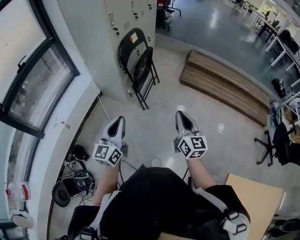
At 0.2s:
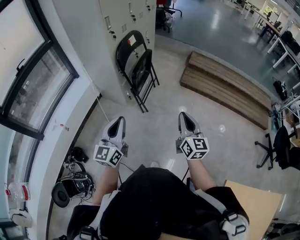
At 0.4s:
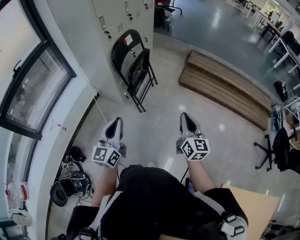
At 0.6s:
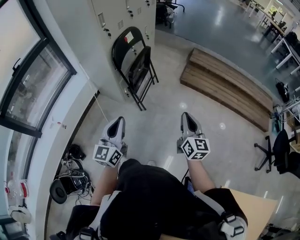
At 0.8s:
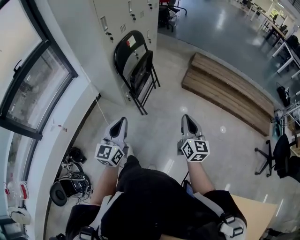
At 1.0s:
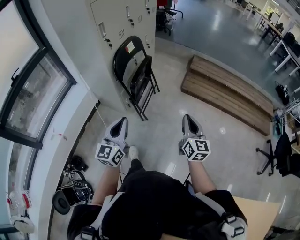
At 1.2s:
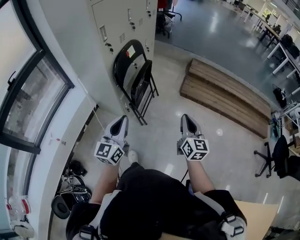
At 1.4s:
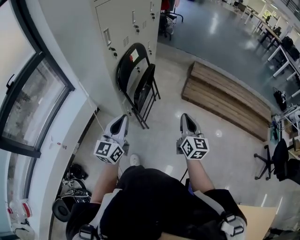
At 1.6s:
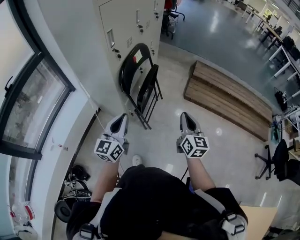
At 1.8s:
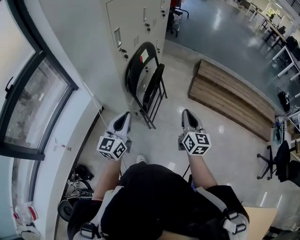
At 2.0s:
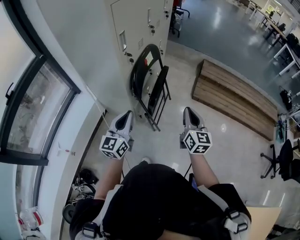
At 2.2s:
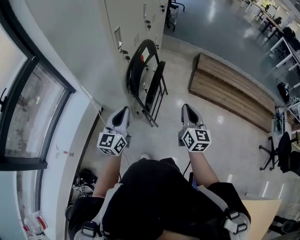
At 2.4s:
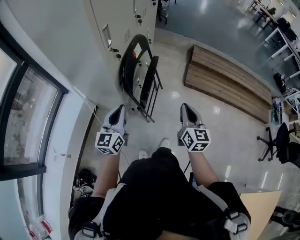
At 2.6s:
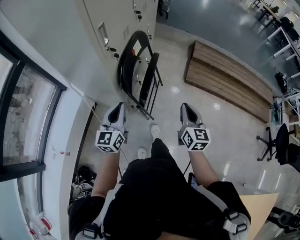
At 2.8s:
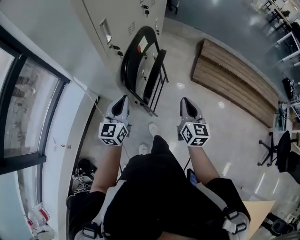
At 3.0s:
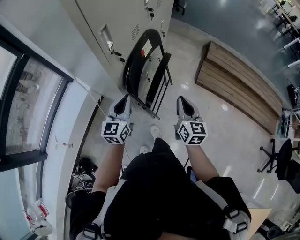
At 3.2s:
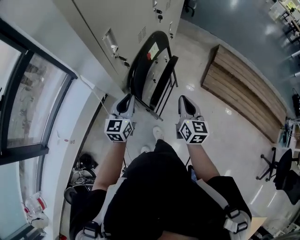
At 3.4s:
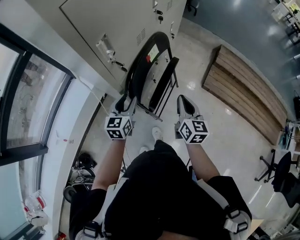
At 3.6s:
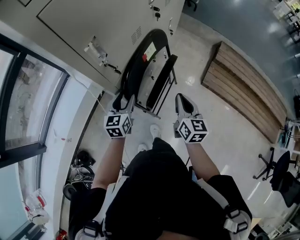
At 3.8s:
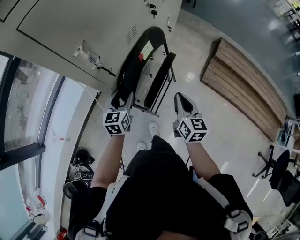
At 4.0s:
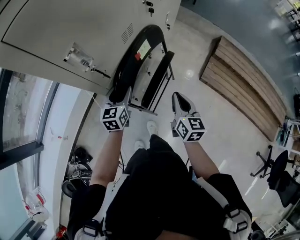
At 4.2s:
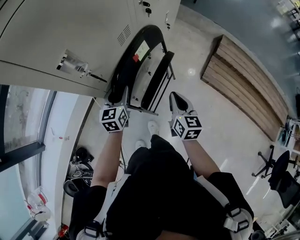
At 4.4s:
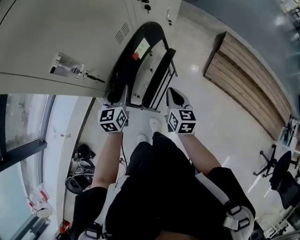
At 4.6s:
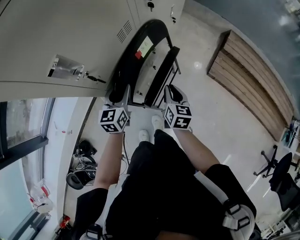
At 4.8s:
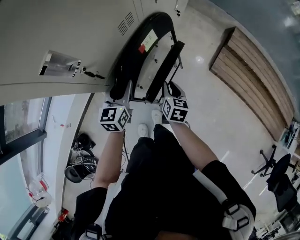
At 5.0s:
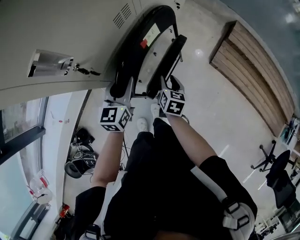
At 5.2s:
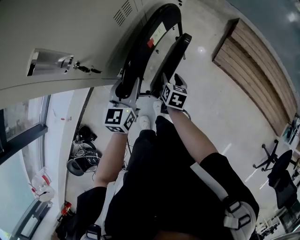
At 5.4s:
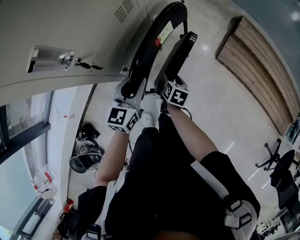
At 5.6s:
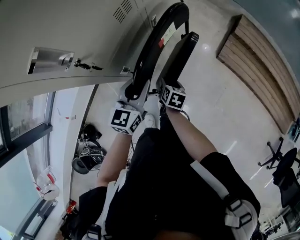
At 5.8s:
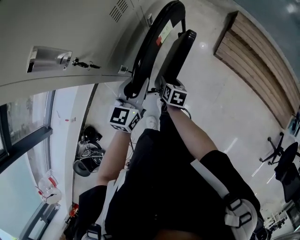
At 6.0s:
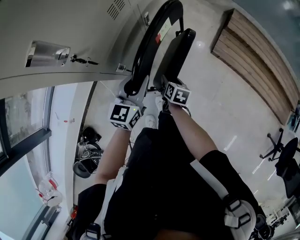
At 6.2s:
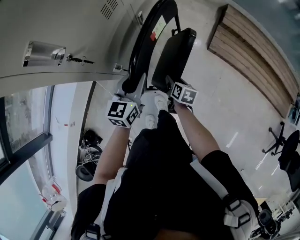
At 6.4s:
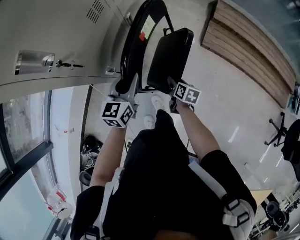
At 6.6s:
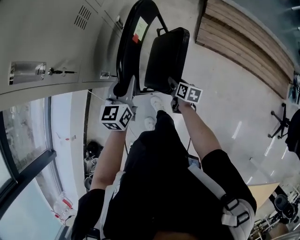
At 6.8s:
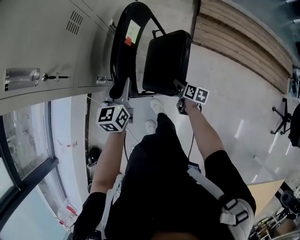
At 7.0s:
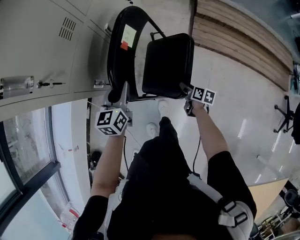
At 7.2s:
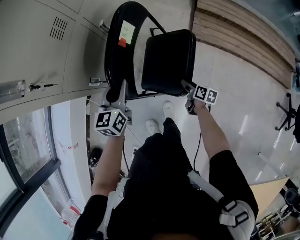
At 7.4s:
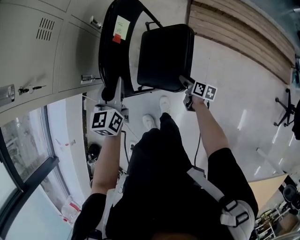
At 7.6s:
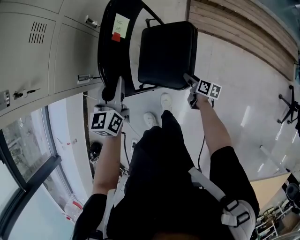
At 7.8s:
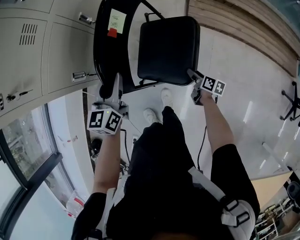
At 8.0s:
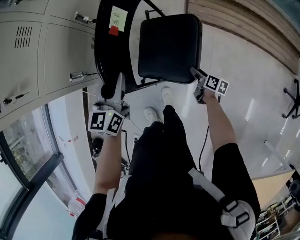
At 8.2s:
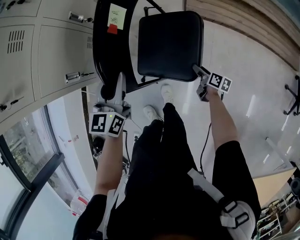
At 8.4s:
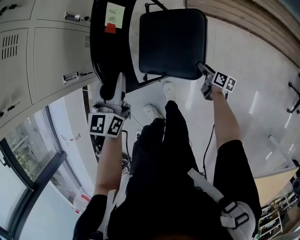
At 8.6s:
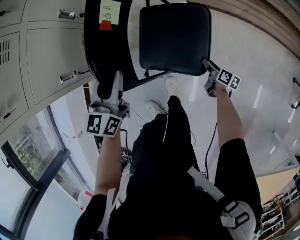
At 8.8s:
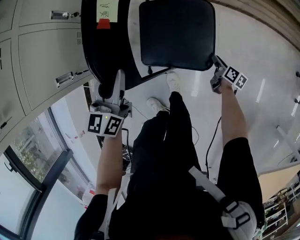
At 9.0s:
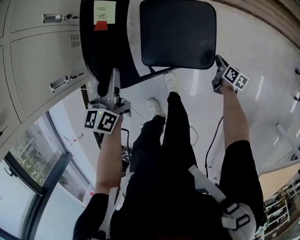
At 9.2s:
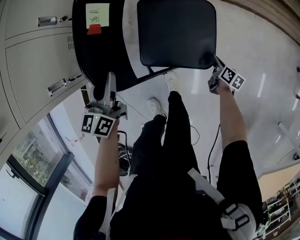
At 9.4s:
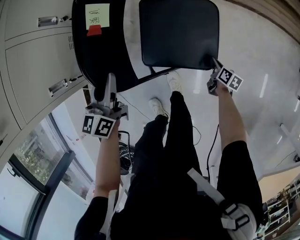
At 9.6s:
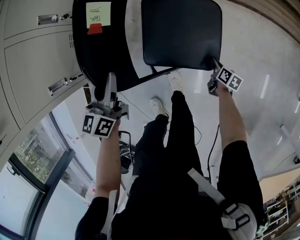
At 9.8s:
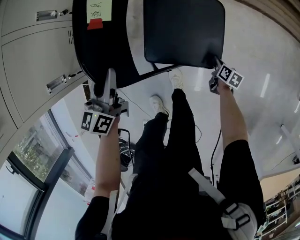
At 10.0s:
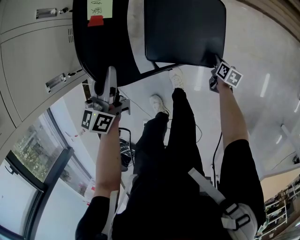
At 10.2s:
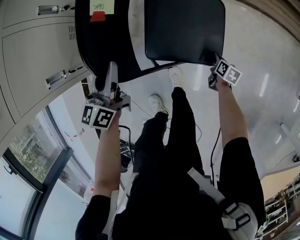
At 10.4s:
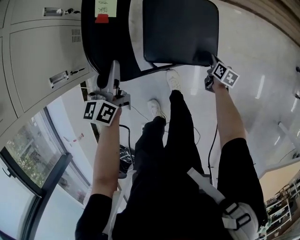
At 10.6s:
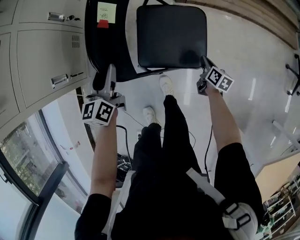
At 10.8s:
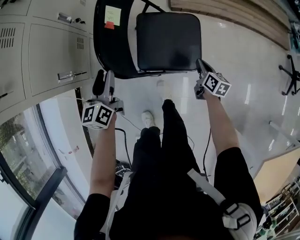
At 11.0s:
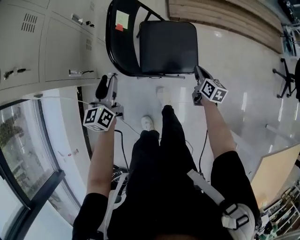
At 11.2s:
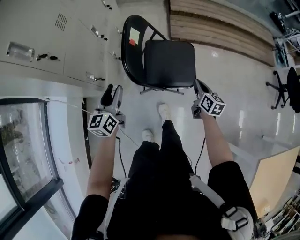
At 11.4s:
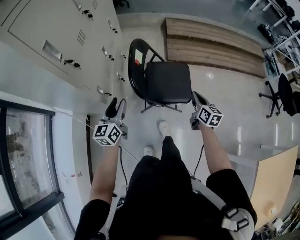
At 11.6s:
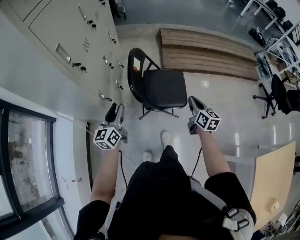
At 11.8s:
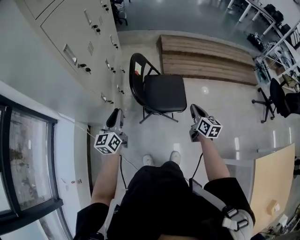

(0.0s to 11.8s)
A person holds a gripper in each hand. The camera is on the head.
0.0s - 1.4s: The two grippers go approximately 25 cm forward.
1.4s - 3.0s: The left gripper goes about 25 cm forward, to the left and downward, while the right gripper moves forward and to the left, some 25 cm.
3.0s - 4.4s: Both grippers move forward and downward, approximately 15 cm. The left gripper opens its fingers.
4.4s - 6.0s: The right gripper travels downward by about 15 cm, rotates roughly 30 degrees, and opens up. Meanwhile the left gripper is displaced to the right by approximately 10 cm.
6.0s - 7.4s: The right gripper is displaced to the right and downward by approximately 25 cm, and turns by about 20 degrees. Meanwhile the left gripper moves approximately 5 cm.
7.4s - 8.8s: The right gripper is displaced to the right and downward by about 20 cm, and closes, while the left gripper shifts approximately 10 cm to the right and downward.
8.8s - 10.4s: The right gripper closes, while the left gripper heads downward, covering about 5 cm.
10.4s - 11.8s: The left gripper goes approximately 30 cm upward and backward, while the right gripper moves upward, roughly 40 cm, and tilts its fingers some 30 degrees upward.

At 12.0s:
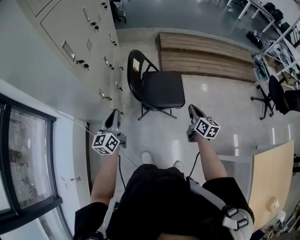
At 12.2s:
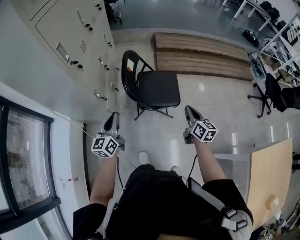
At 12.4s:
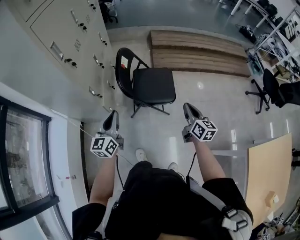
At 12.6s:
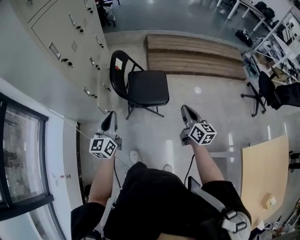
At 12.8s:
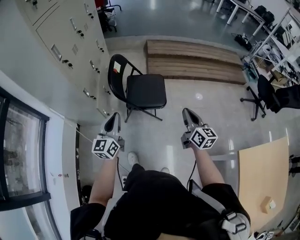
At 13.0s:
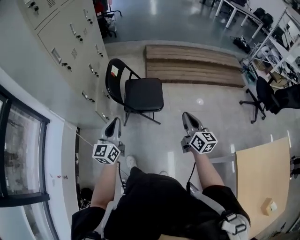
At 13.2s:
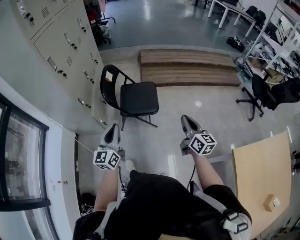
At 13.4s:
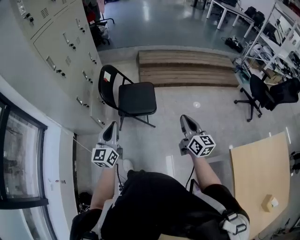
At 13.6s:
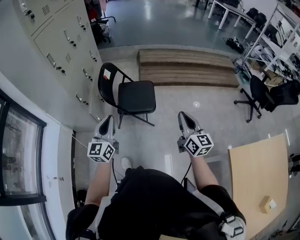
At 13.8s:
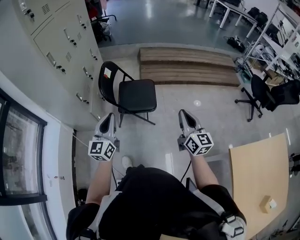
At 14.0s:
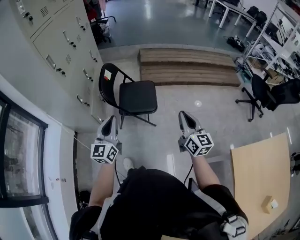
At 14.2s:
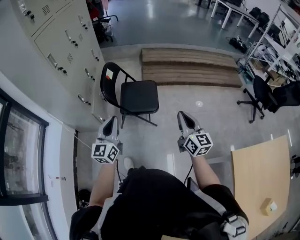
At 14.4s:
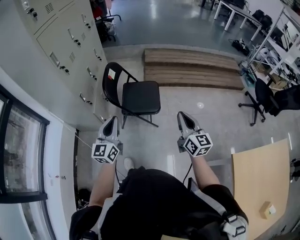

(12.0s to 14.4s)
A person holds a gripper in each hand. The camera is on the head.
12.0s - 13.2s: The left gripper shifts roughly 25 cm to the right and backward, while the right gripper travels backward, to the right and upward by about 25 cm.
13.2s - 14.4s: There are only small adjustments of the grippers.

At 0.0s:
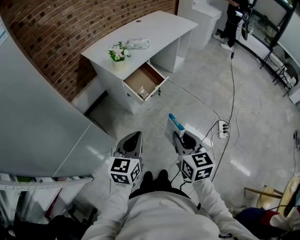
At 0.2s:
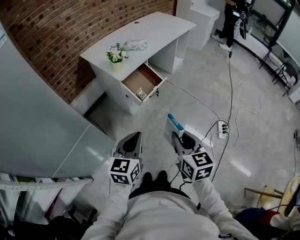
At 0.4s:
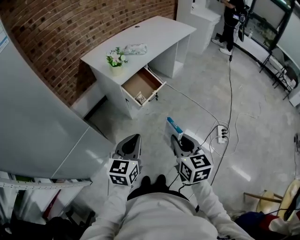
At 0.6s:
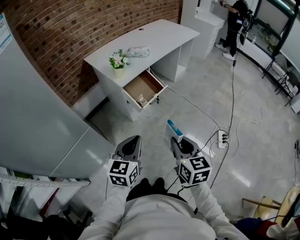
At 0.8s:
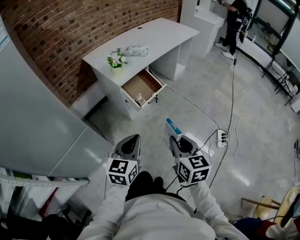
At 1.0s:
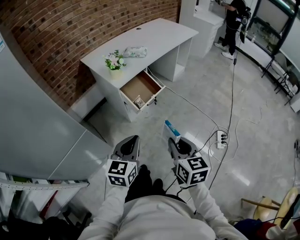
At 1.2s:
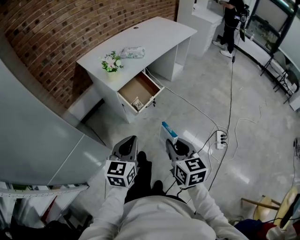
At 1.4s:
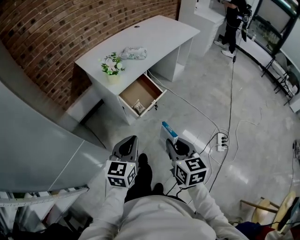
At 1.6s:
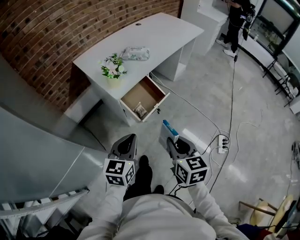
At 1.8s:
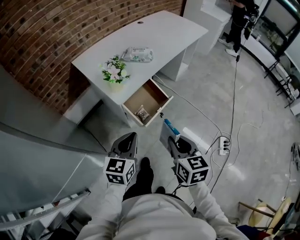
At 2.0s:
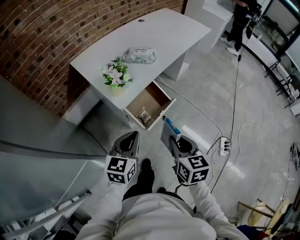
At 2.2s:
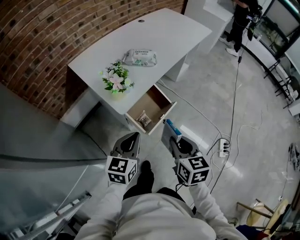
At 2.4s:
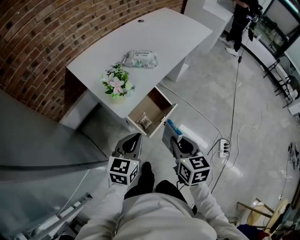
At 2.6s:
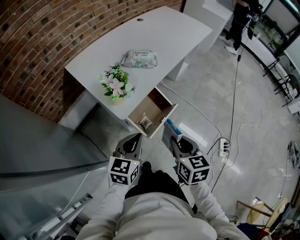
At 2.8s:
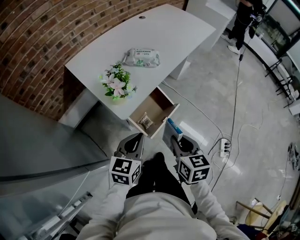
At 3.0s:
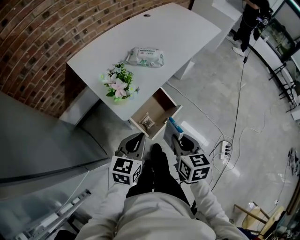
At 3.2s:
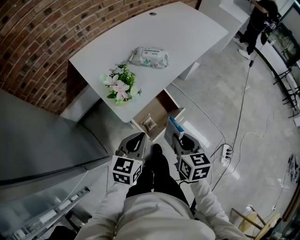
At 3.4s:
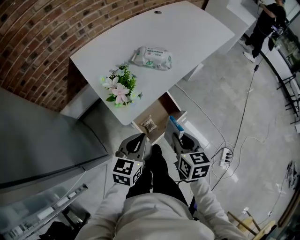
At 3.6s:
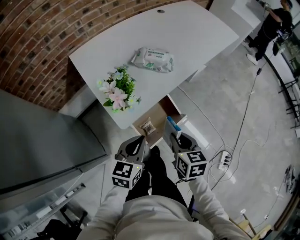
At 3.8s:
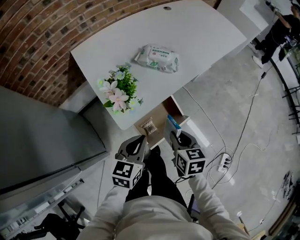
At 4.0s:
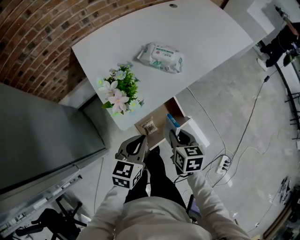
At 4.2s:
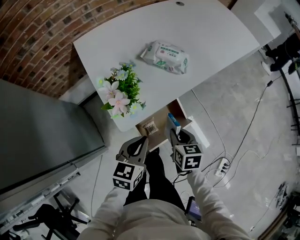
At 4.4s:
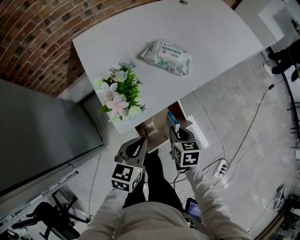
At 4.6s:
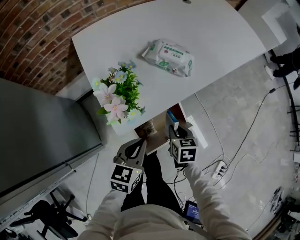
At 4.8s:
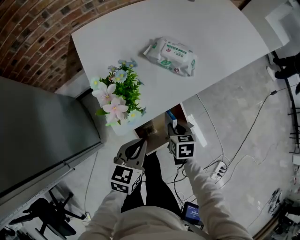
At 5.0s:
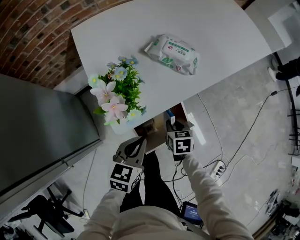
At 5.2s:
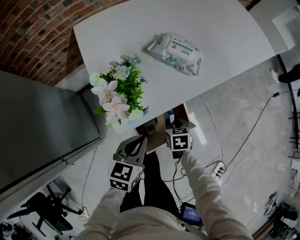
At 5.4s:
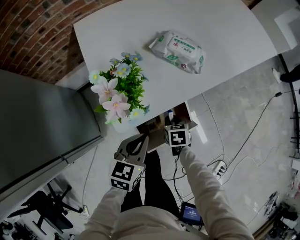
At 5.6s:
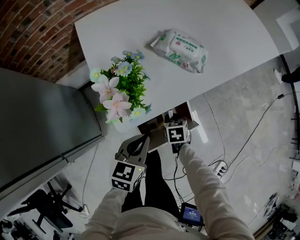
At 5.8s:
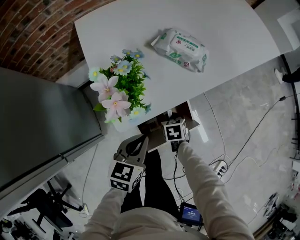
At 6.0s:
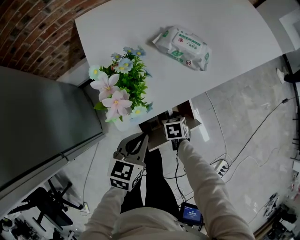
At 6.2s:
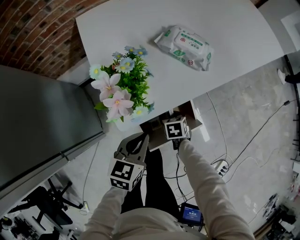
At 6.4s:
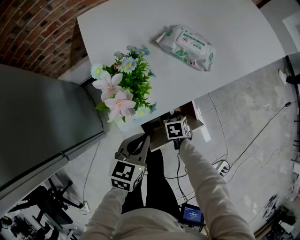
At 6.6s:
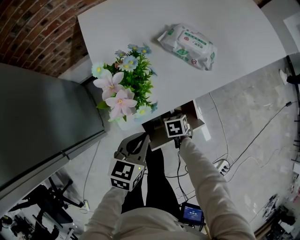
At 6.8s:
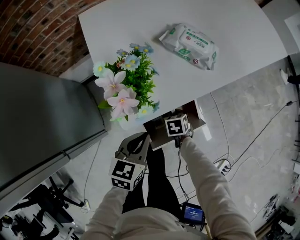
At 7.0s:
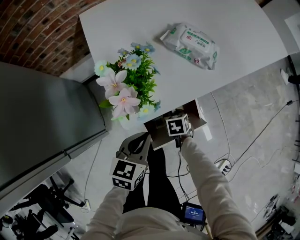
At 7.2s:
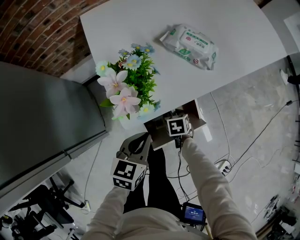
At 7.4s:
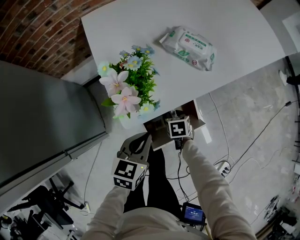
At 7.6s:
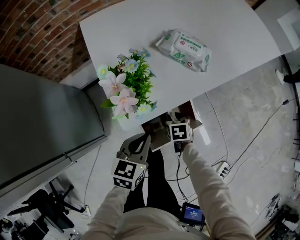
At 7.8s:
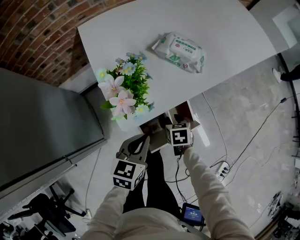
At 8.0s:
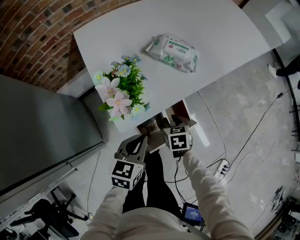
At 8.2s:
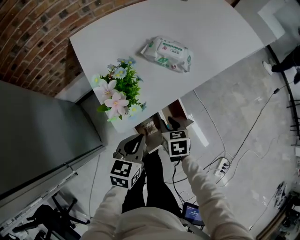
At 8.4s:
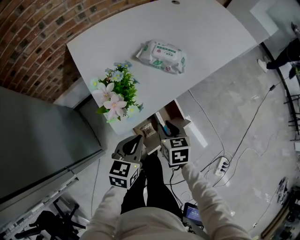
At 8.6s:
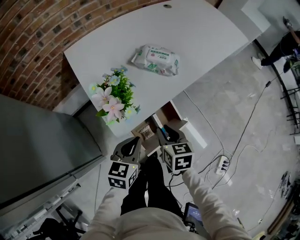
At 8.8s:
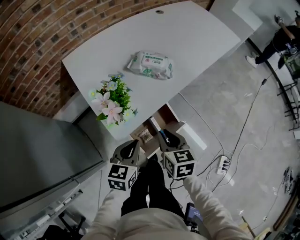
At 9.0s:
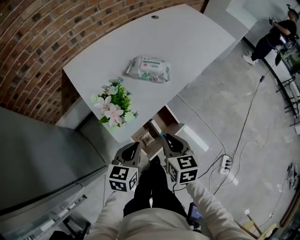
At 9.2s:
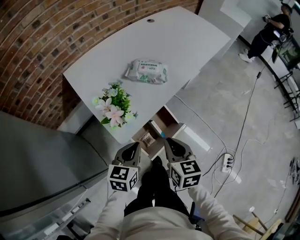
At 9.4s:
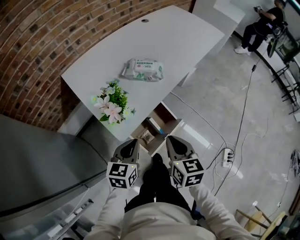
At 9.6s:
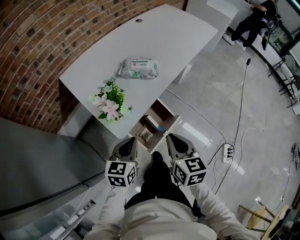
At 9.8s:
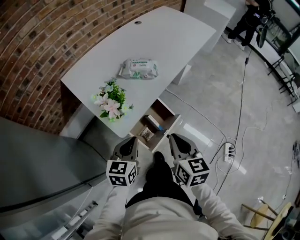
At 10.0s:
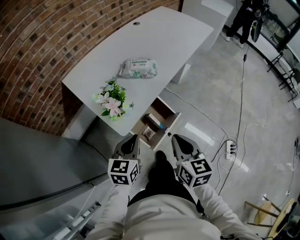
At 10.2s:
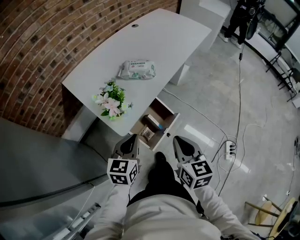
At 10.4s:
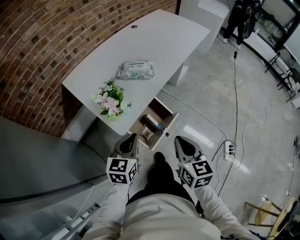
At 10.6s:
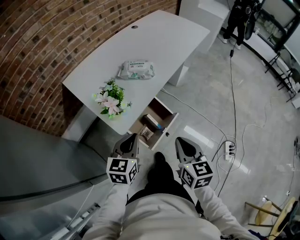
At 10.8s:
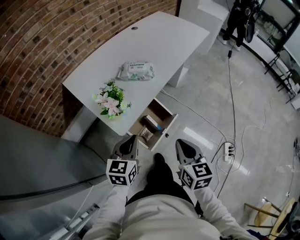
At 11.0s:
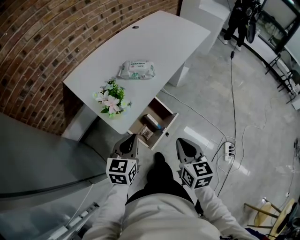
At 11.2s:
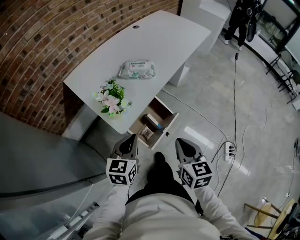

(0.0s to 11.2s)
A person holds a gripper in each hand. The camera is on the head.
0.0s - 1.6s: Both grippers move forward, approximately 15 cm.
1.6s - 3.2s: The two grippers go about 20 cm forward.
3.2s - 4.8s: The left gripper heads downward and forward, covering approximately 10 cm. Meanwhile the right gripper is displaced downward and forward by approximately 25 cm, and turns by roughly 20 degrees.
4.8s - 6.4s: The right gripper goes some 10 cm downward.
6.4s - 8.0s: The right gripper is displaced upward by approximately 10 cm.
8.0s - 9.6s: The right gripper heads upward and backward, covering approximately 25 cm, turns by roughly 40 degrees, and closes up. The left gripper heads upward, covering some 5 cm.
9.6s - 11.2s: The right gripper heads backward, covering some 5 cm.
